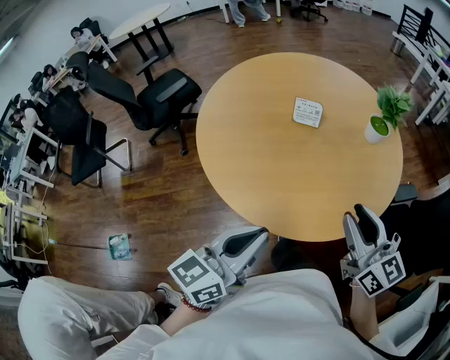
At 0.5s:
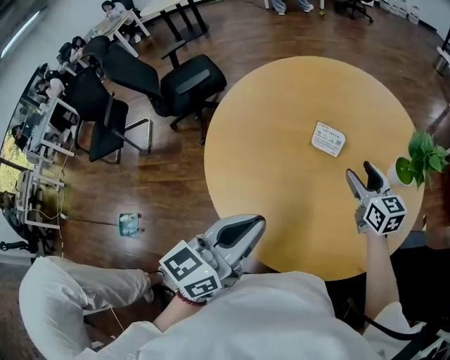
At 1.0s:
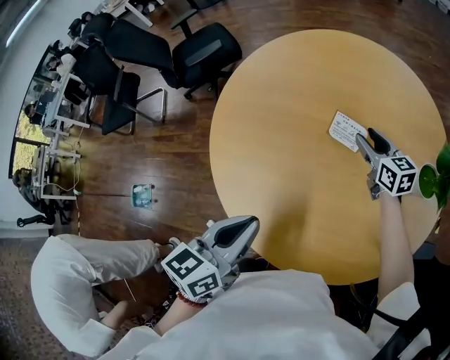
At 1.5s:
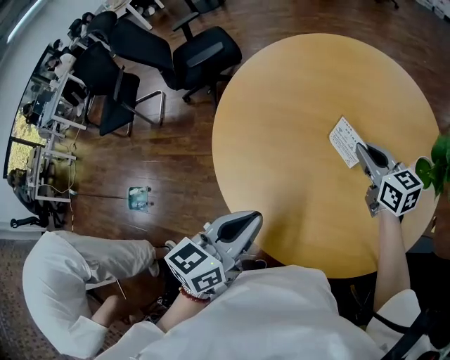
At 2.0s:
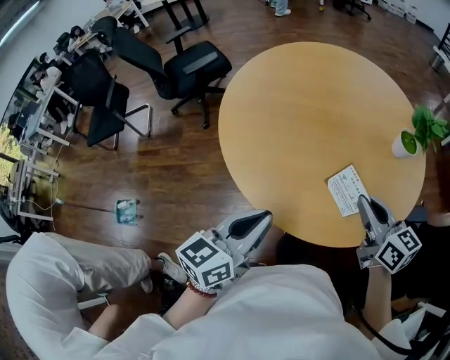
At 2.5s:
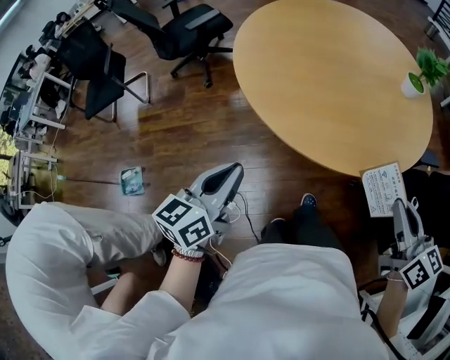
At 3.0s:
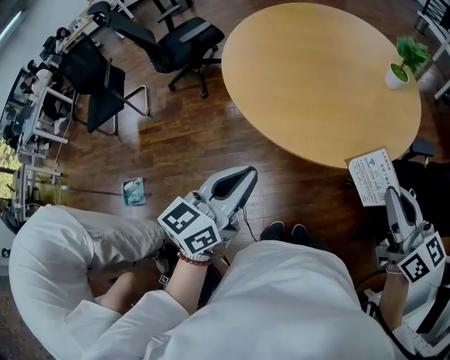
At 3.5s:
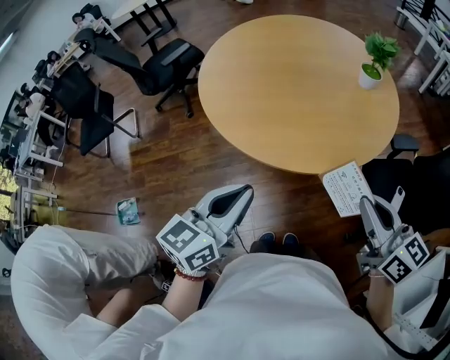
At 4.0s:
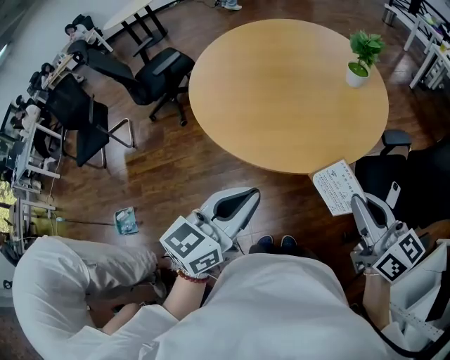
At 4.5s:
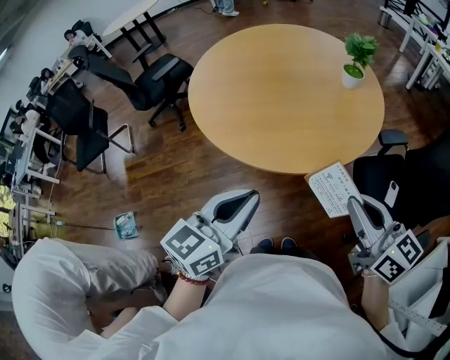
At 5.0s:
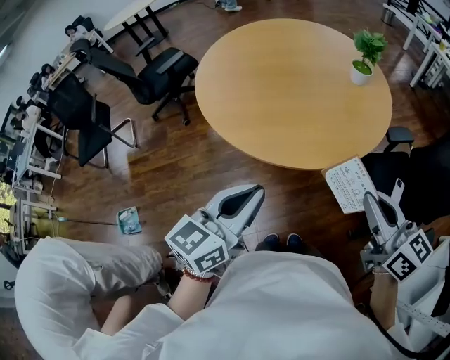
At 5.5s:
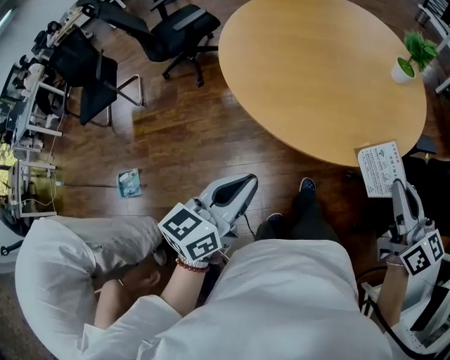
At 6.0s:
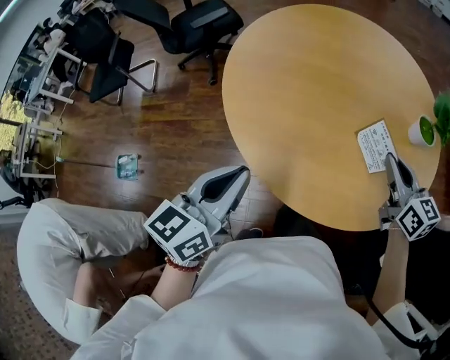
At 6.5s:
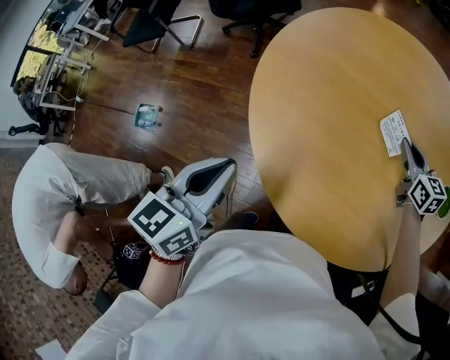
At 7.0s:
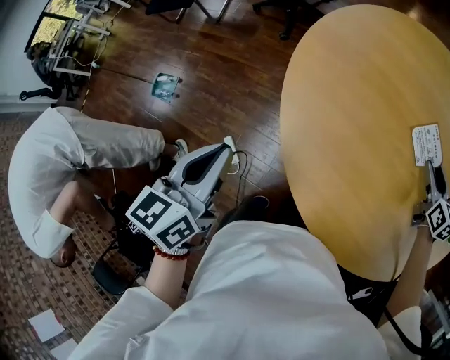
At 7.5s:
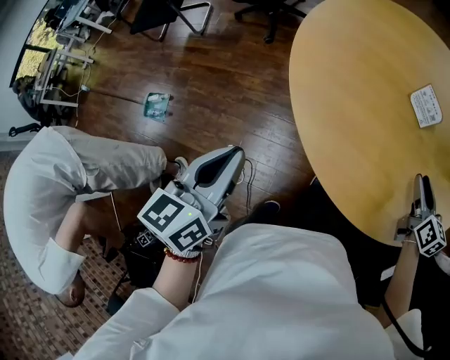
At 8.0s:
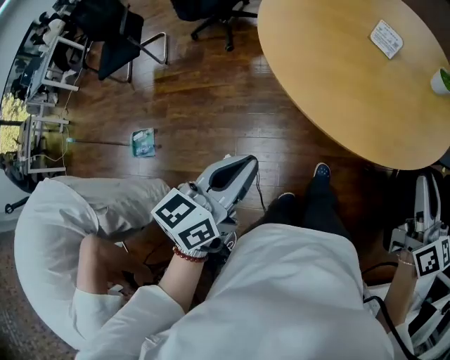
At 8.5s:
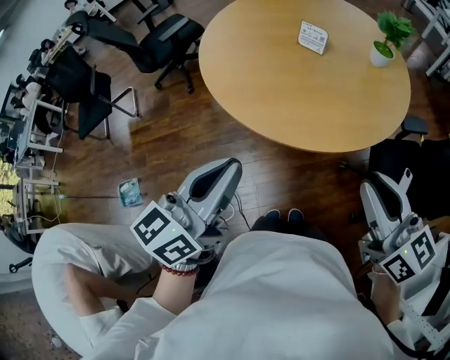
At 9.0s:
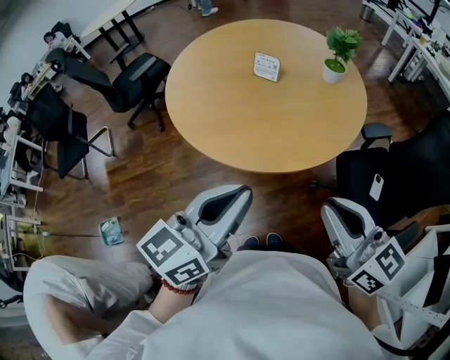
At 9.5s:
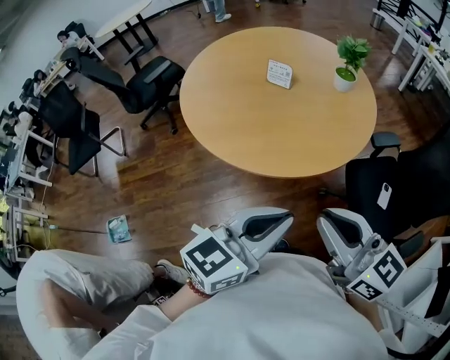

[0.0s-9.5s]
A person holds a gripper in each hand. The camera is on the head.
0.0s to 2.0s: The right gripper shifts roughly 5 cm downward, travels forward and back again, roughly 50 cm each way, swivels some 20 degrees, and closes, while the left gripper moves forward and downward, some 10 cm.
2.0s to 4.0s: The right gripper heads backward, covering roughly 30 cm. Meanwhile the left gripper moves backward, some 20 cm, and travels to the left and back again, roughly 15 cm each way.
4.0s to 5.5s: The left gripper heads to the left and downward, covering some 15 cm; the right gripper travels forward by about 10 cm.
5.5s to 7.5s: The right gripper opens its fingers. Meanwhile the left gripper swivels approximately 40 degrees.
7.5s to 9.5s: The right gripper changes place by approximately 50 cm, swivels about 20 degrees, and closes its fingers. The left gripper ends up some 35 cm from where it was, and rotates approximately 60 degrees.

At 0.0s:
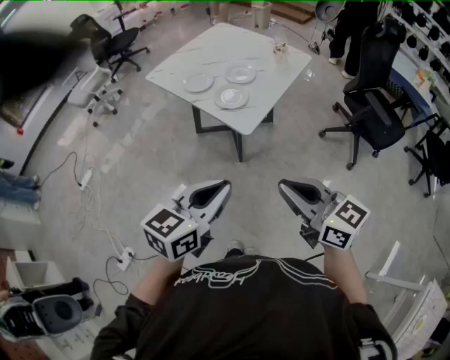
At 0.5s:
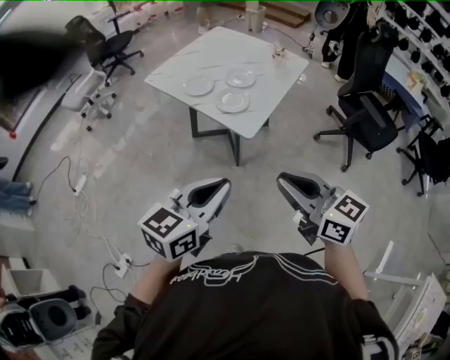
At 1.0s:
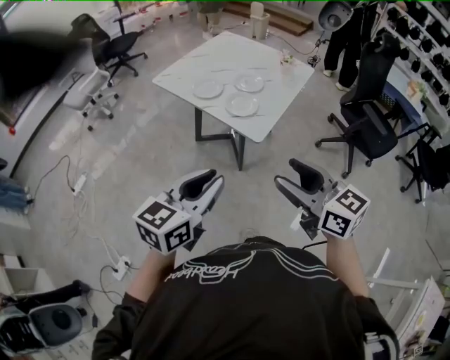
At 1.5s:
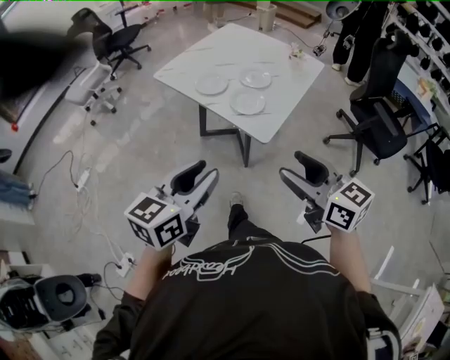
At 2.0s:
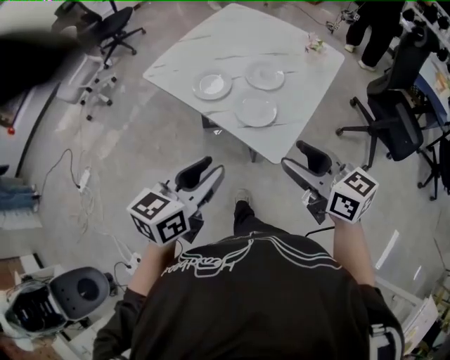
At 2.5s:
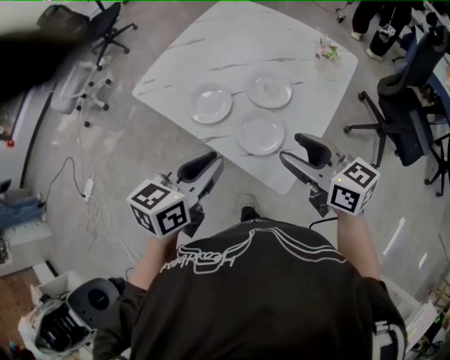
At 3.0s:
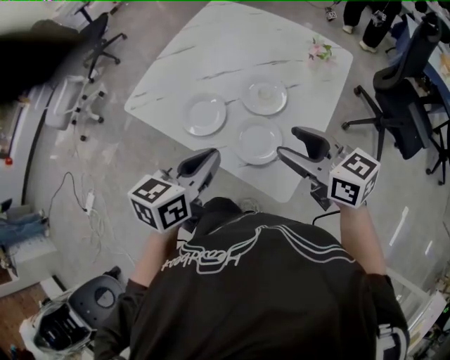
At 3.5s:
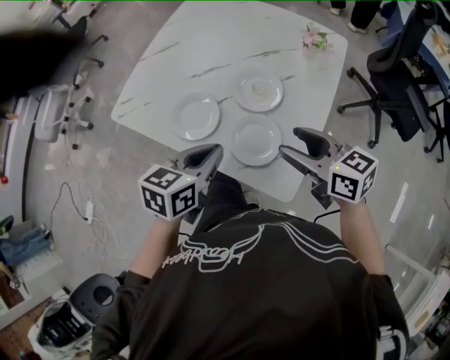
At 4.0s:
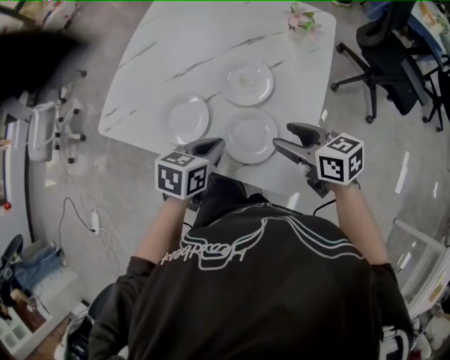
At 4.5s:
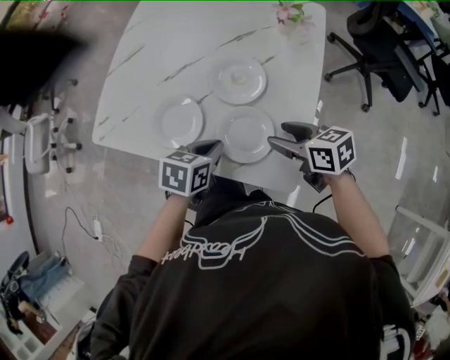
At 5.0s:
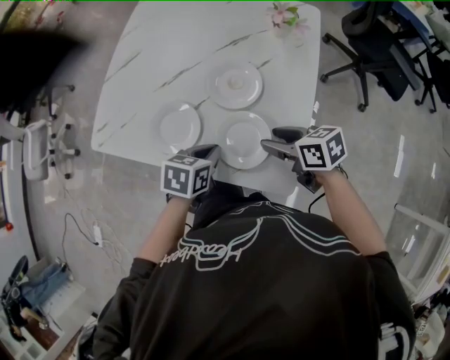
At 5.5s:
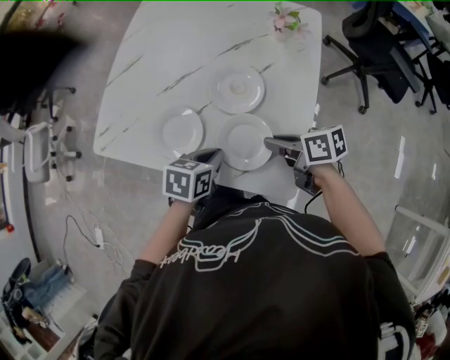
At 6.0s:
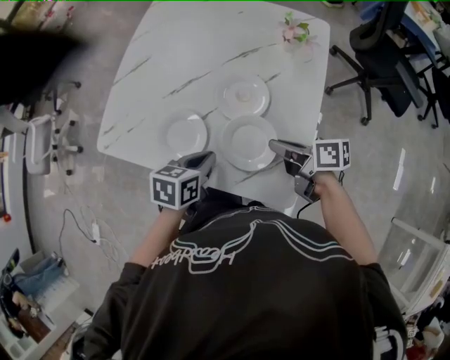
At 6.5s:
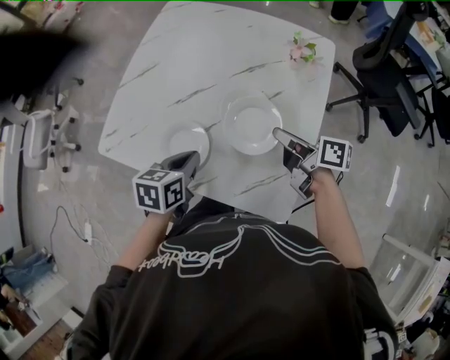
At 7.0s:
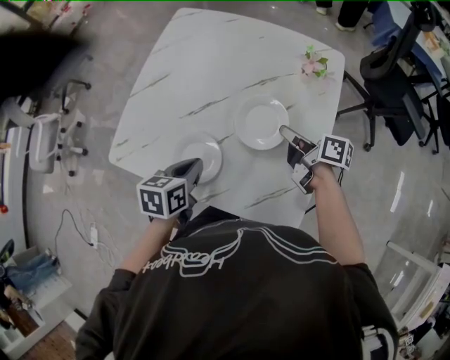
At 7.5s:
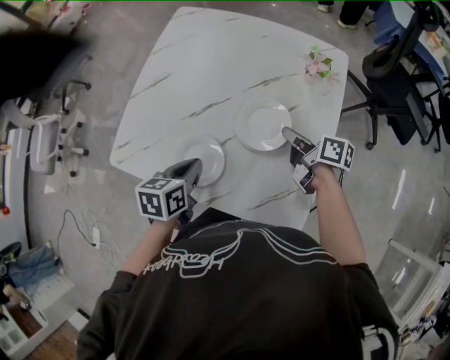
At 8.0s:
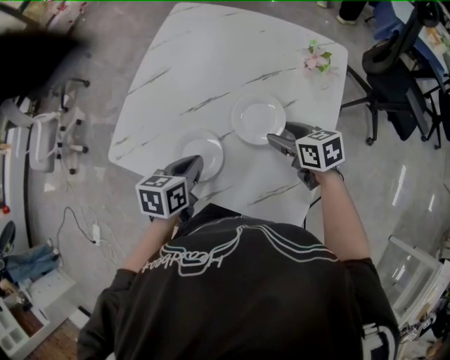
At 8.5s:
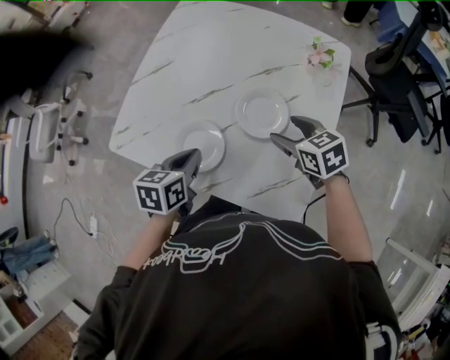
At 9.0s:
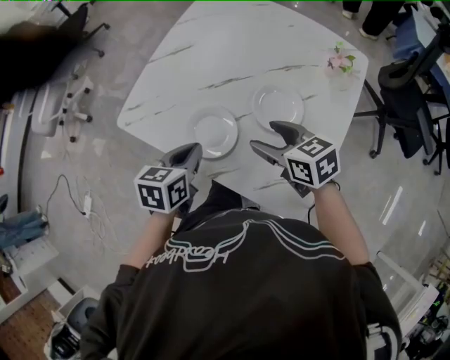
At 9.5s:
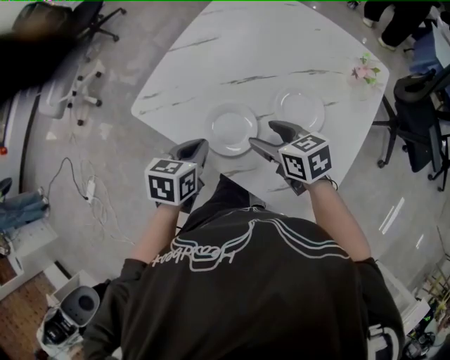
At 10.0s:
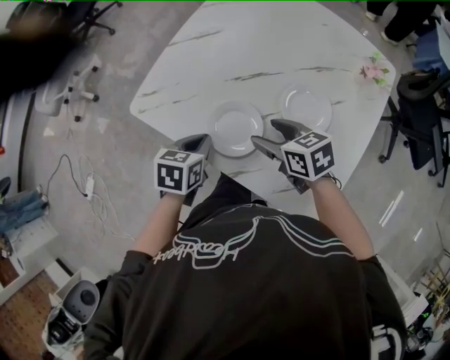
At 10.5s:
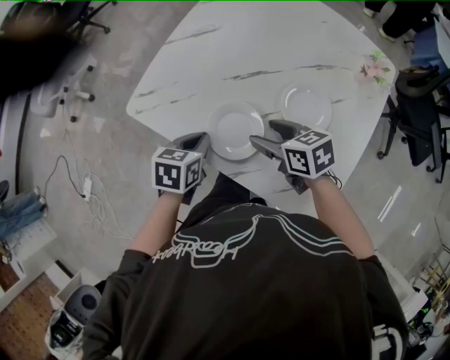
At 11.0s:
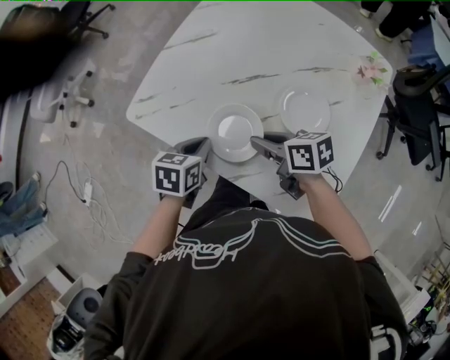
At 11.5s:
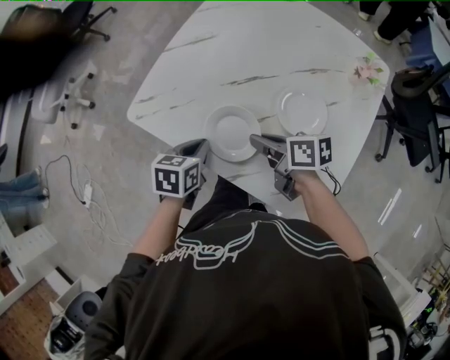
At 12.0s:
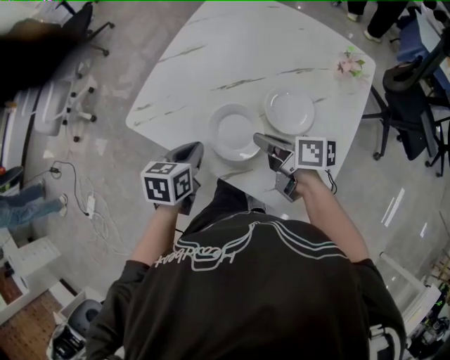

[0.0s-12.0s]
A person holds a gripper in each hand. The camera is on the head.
0.0s to 2.0s: The left gripper goes approximately 30 cm forward and to the left, and opens. Meanwhile the right gripper travels forward by approximately 30 cm, and opens.
2.0s to 4.0s: The grippers both shift forward and downward by some 30 cm. The left gripper swivels about 30 degrees, and closes its fingers. Meanwhile the right gripper rotates about 20 degrees.
4.0s to 6.0s: The right gripper changes its angle by roughly 30 degrees, and closes its fingers.
6.0s to 8.0s: The right gripper is displaced forward by some 10 cm, swivels about 40 degrees, and opens up; the left gripper goes about 10 cm to the left and forward.
8.0s to 10.0s: The right gripper moves to the left, roughly 20 cm, while the left gripper shifts about 10 cm to the left.
10.0s to 12.0s: The right gripper rotates some 40 degrees, and closes.

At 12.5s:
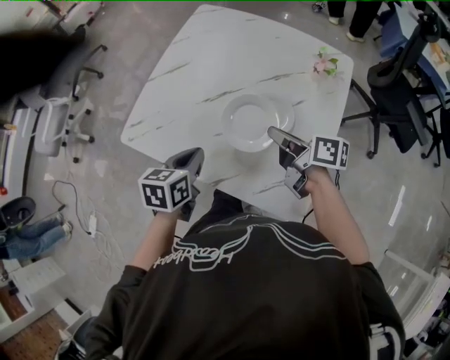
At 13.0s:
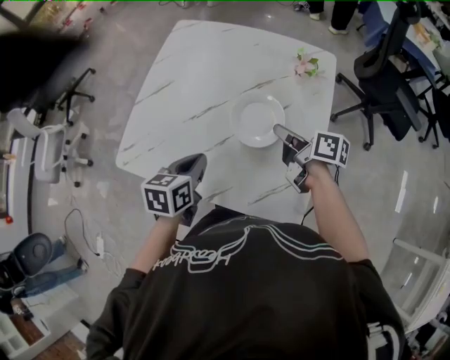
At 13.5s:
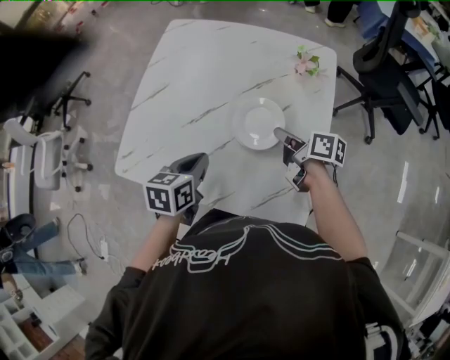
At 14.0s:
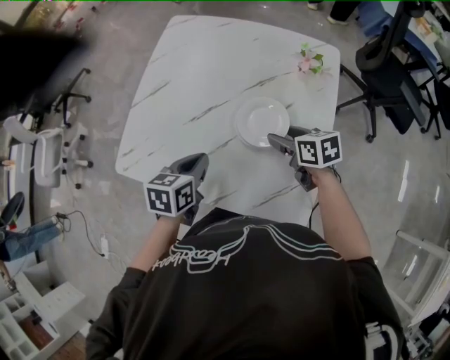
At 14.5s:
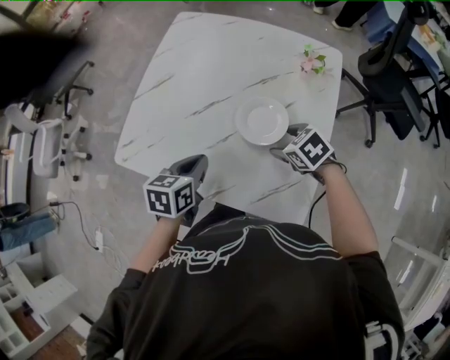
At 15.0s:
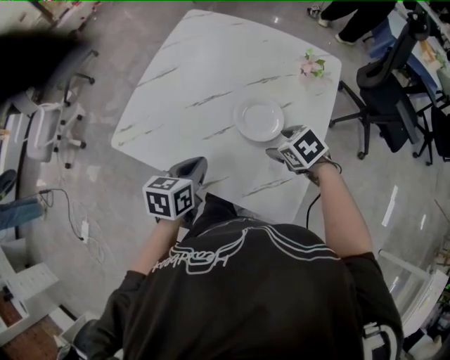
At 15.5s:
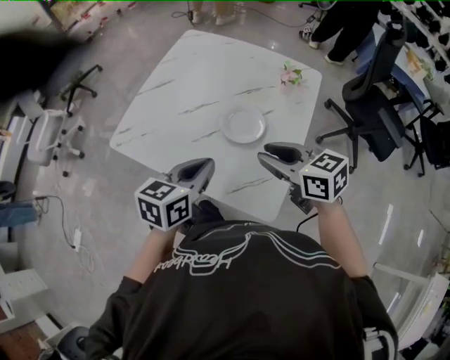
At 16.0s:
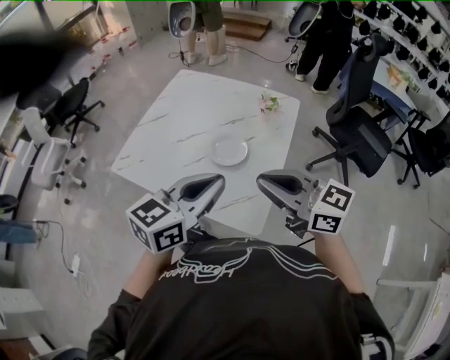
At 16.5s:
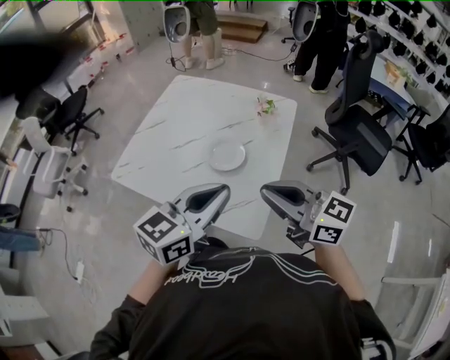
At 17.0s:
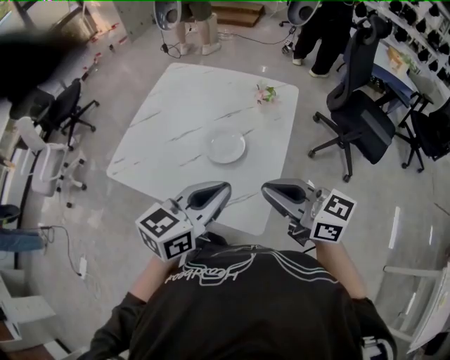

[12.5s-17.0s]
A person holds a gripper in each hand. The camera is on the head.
12.5s to 14.5s: The right gripper moves downward, about 10 cm, tilts its fingers about 40 degrees downward, and opens its fingers.
14.5s to 17.0s: The right gripper heads upward and backward, covering approximately 35 cm, points its fingers roughly 60 degrees further upward, and closes its fingers, while the left gripper is displaced upward, backward and to the right by some 30 cm, and tips its fingers upward by about 30 degrees.
